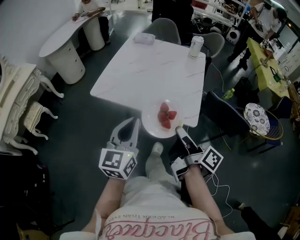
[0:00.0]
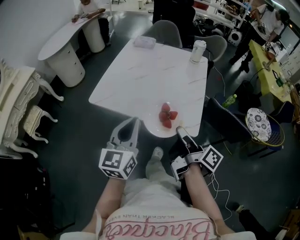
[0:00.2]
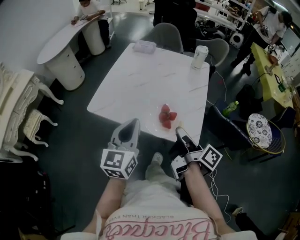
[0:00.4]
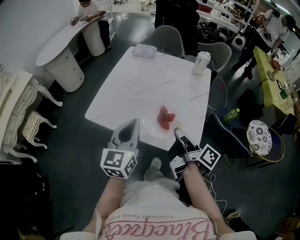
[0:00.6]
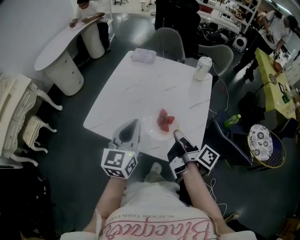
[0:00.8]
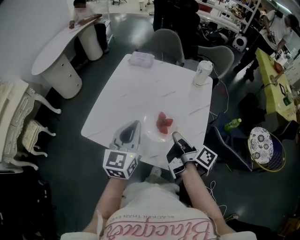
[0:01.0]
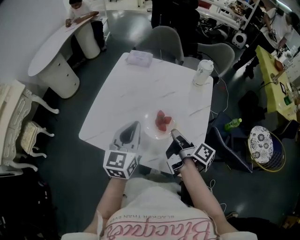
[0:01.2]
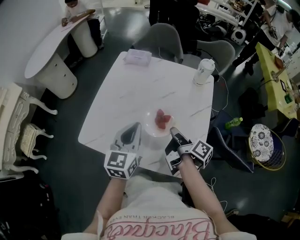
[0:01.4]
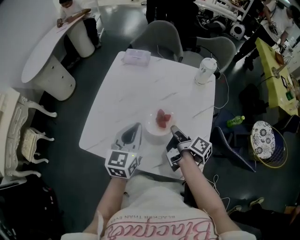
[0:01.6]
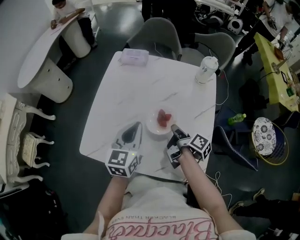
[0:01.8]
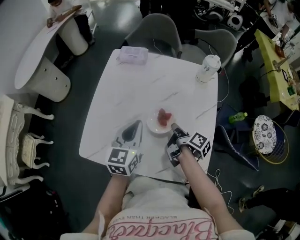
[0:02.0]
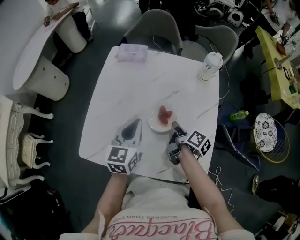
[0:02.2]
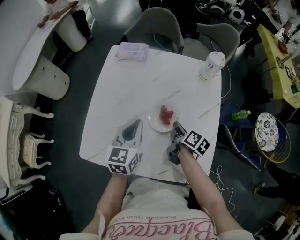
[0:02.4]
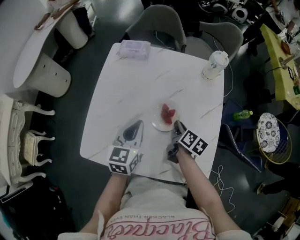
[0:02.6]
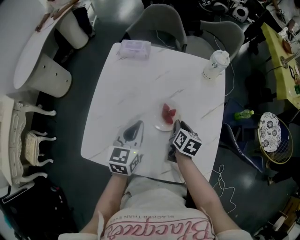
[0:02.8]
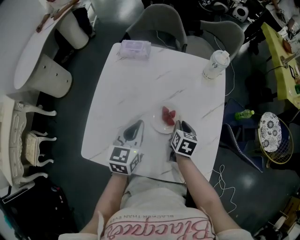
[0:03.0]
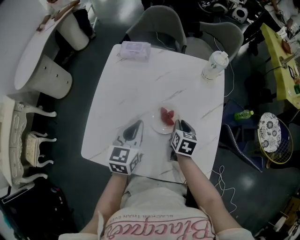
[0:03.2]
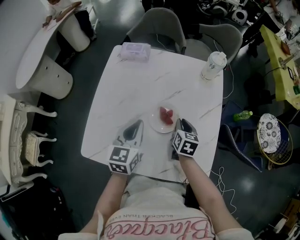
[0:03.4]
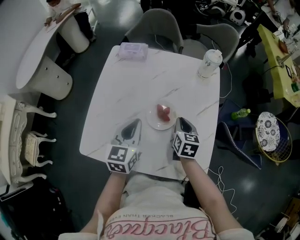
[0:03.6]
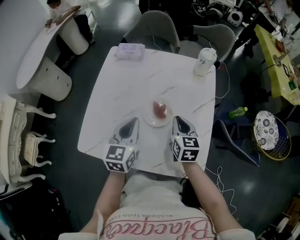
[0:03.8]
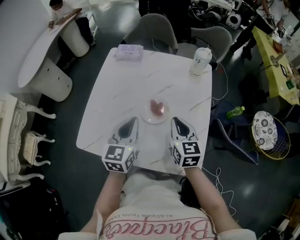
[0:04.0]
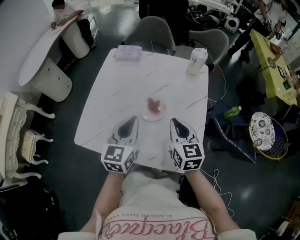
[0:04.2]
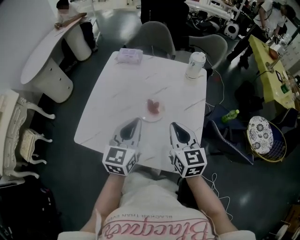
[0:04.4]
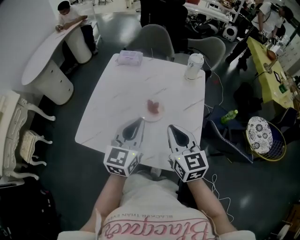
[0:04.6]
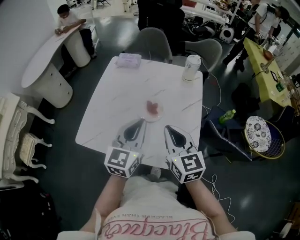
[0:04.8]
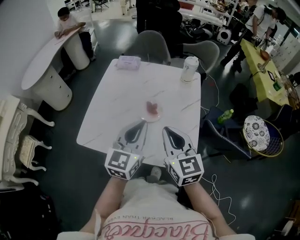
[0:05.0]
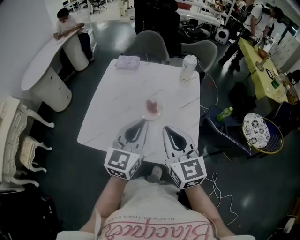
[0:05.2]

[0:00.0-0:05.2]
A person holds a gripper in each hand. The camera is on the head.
0:00.0 to 0:01.8: The pair of grippers is taken forward, approximately 40 cm. The right gripper swivels approximately 20 degrees.
0:01.8 to 0:03.4: The right gripper travels forward by roughly 5 cm, and rotates around the line of its fingers by about 60 degrees, counterclockwise from behind, while the left gripper shifts by approximately 5 cm.
0:03.4 to 0:05.2: The left gripper goes roughly 25 cm backward, upward and to the right, and swivels roughly 20 degrees. The right gripper travels upward and backward by about 35 cm, and angles its fingers upward, by approximately 30 degrees.

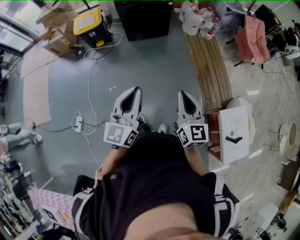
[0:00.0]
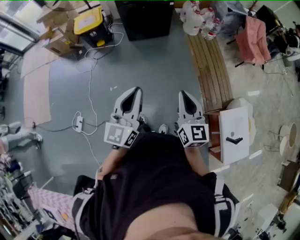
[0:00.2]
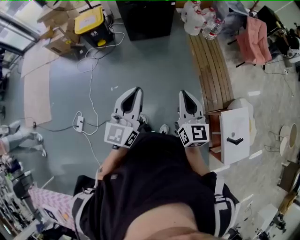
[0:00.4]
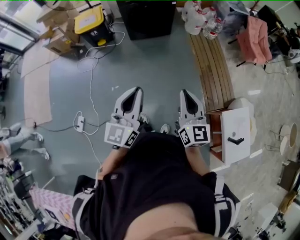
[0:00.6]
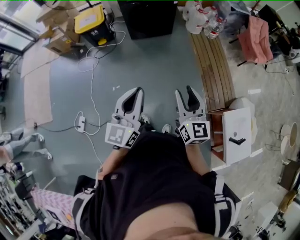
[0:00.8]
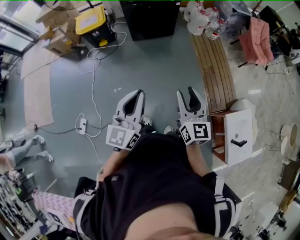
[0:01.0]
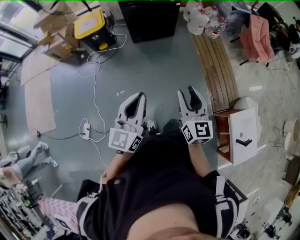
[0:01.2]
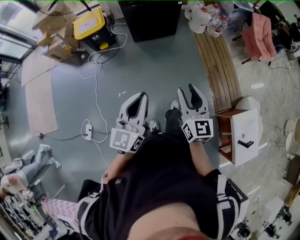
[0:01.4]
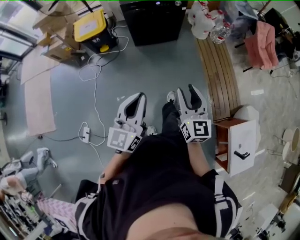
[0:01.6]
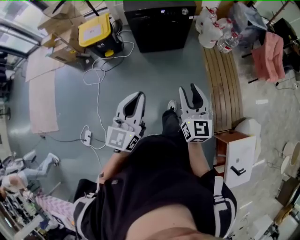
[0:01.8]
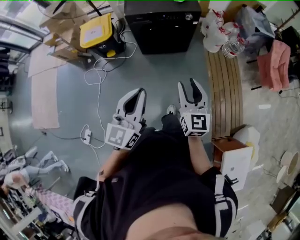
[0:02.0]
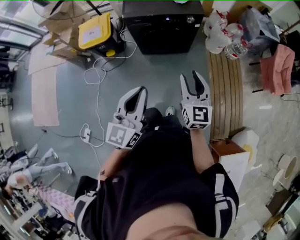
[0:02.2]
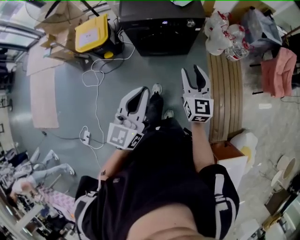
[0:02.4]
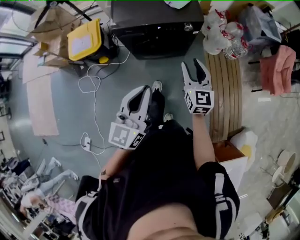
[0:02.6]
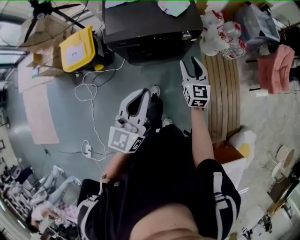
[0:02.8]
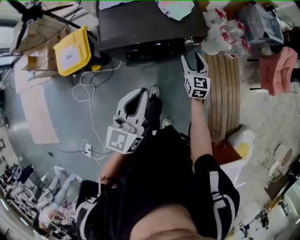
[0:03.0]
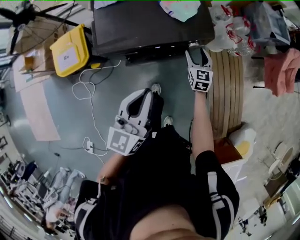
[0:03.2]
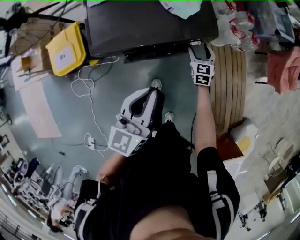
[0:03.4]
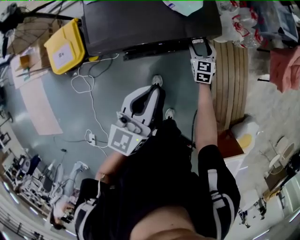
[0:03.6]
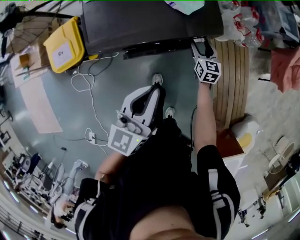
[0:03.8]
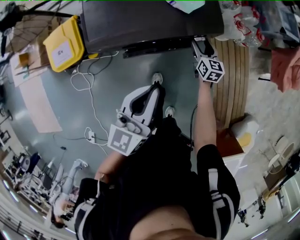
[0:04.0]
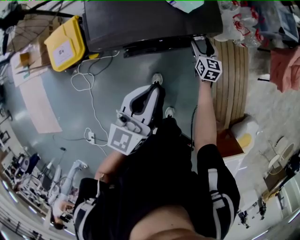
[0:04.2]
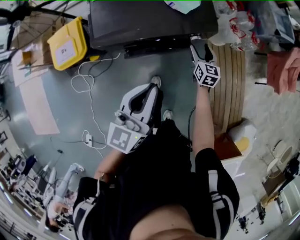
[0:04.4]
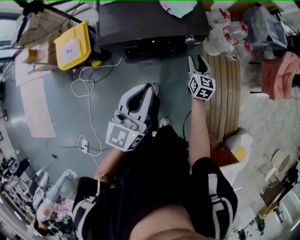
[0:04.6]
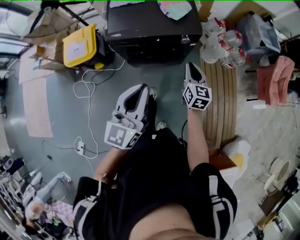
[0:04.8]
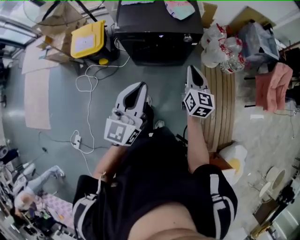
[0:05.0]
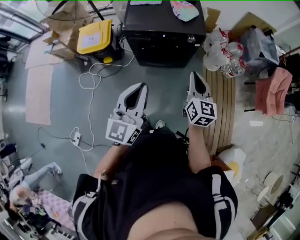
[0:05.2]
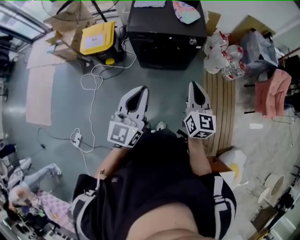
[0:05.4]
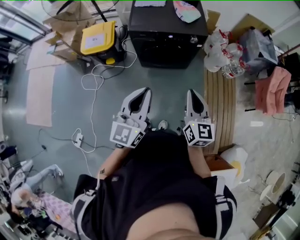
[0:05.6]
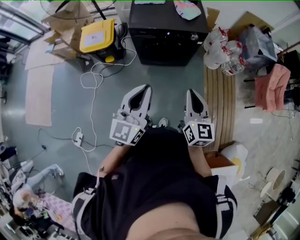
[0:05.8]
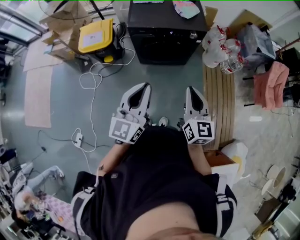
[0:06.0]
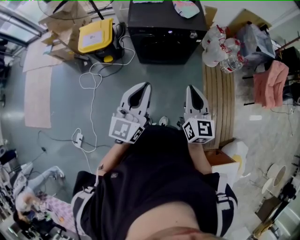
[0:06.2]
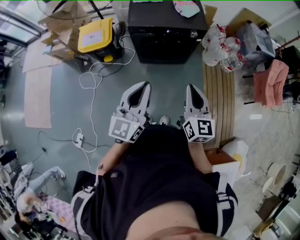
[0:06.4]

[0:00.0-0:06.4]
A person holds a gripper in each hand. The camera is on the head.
0:00.0 to 0:01.6: The two grippers go approximately 30 cm forward and to the left. The right gripper opens its fingers.
0:01.6 to 0:03.2: The two grippers travel together, forward, about 1 m. The right gripper turns by some 20 degrees.
0:03.2 to 0:04.8: The two grippers go approximately 30 cm backward and upward. The right gripper closes up.
0:04.8 to 0:06.4: The right gripper shifts some 40 cm backward and upward. Meanwhile the left gripper travels backward by roughly 25 cm.

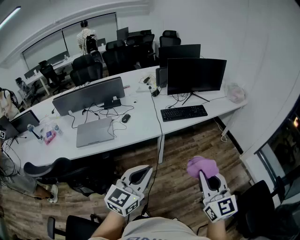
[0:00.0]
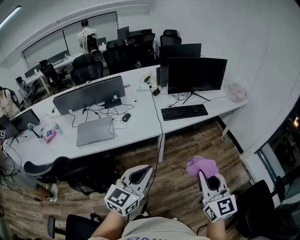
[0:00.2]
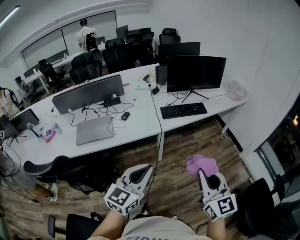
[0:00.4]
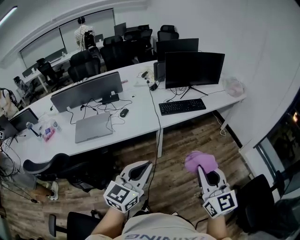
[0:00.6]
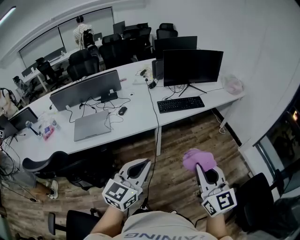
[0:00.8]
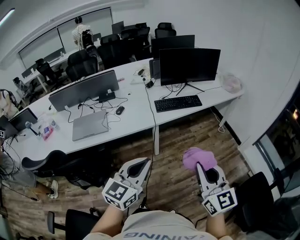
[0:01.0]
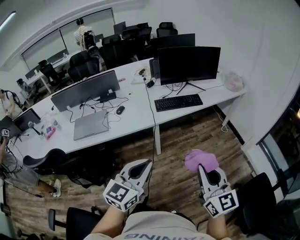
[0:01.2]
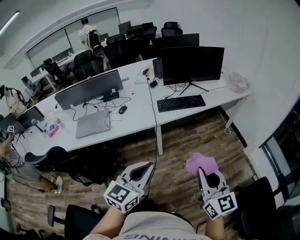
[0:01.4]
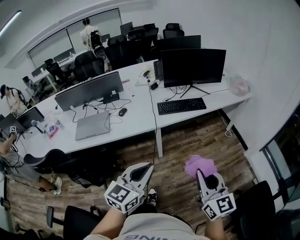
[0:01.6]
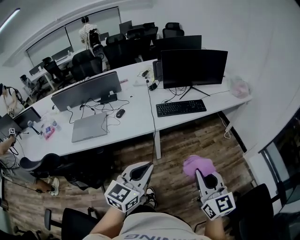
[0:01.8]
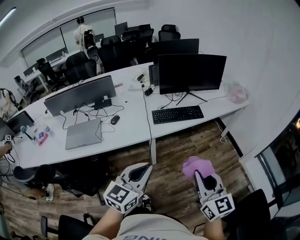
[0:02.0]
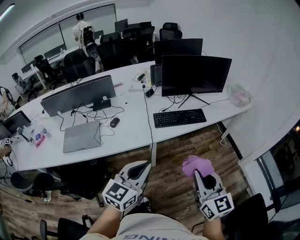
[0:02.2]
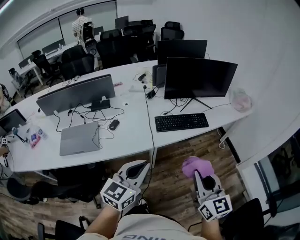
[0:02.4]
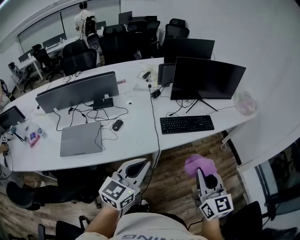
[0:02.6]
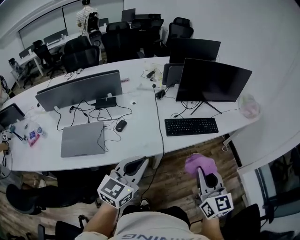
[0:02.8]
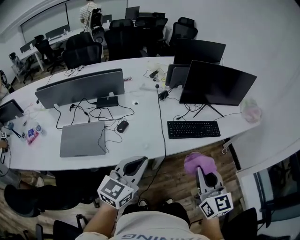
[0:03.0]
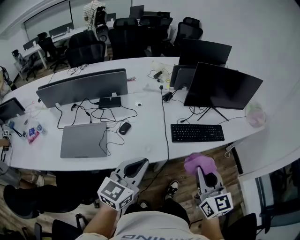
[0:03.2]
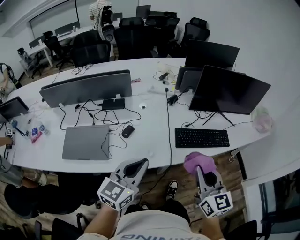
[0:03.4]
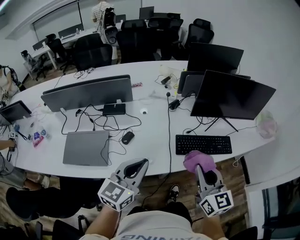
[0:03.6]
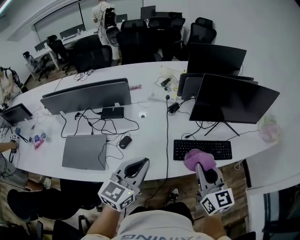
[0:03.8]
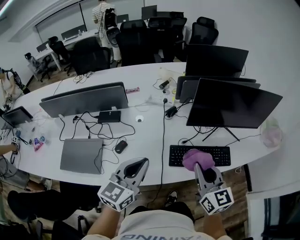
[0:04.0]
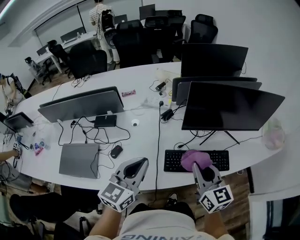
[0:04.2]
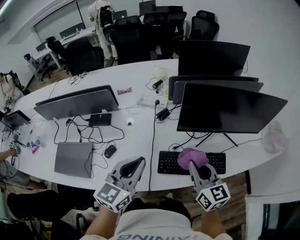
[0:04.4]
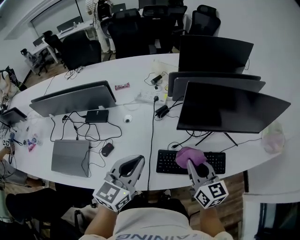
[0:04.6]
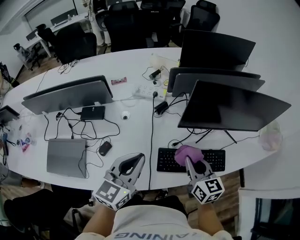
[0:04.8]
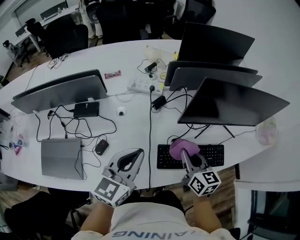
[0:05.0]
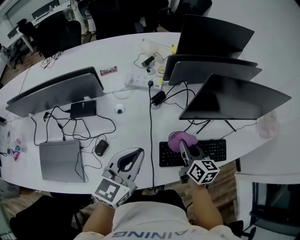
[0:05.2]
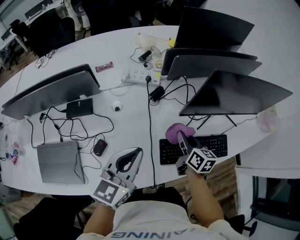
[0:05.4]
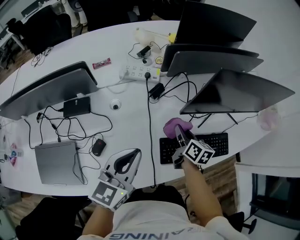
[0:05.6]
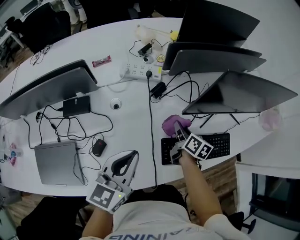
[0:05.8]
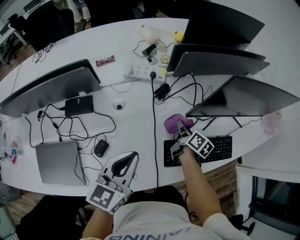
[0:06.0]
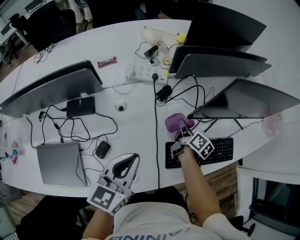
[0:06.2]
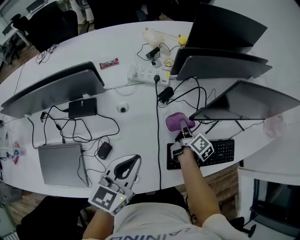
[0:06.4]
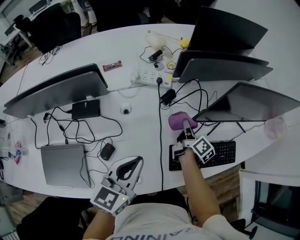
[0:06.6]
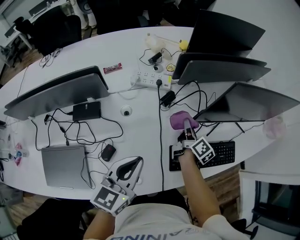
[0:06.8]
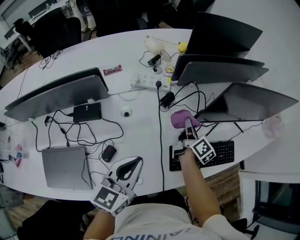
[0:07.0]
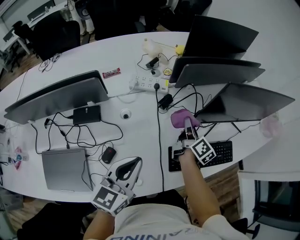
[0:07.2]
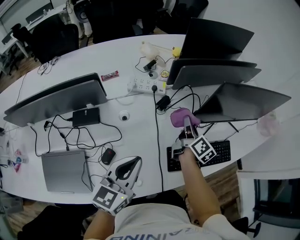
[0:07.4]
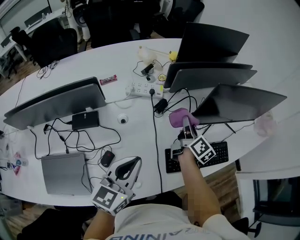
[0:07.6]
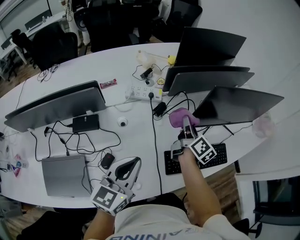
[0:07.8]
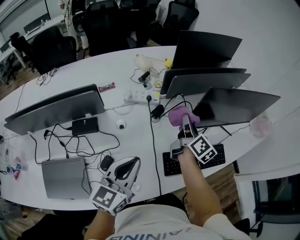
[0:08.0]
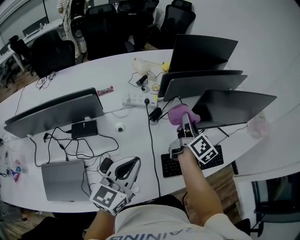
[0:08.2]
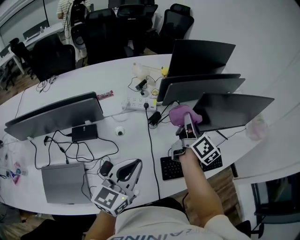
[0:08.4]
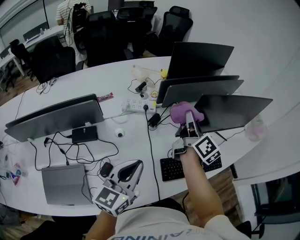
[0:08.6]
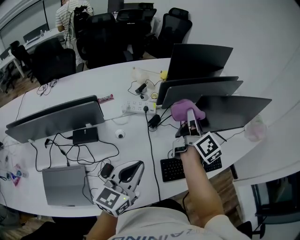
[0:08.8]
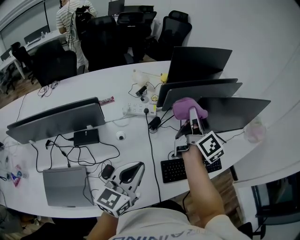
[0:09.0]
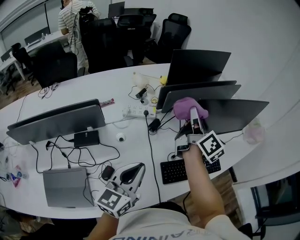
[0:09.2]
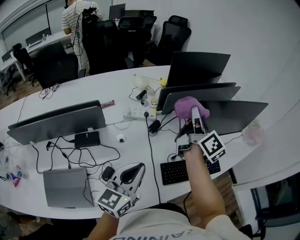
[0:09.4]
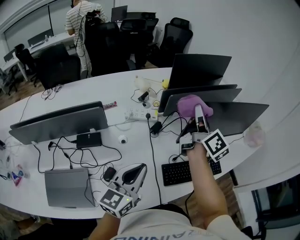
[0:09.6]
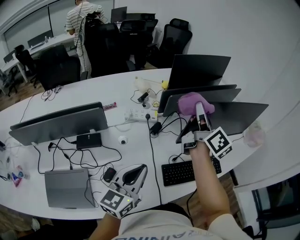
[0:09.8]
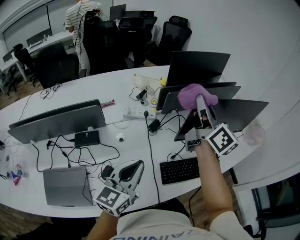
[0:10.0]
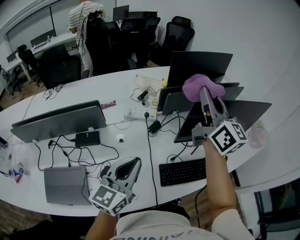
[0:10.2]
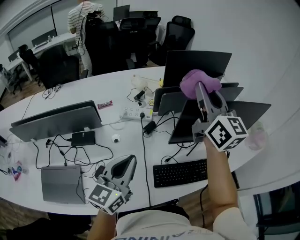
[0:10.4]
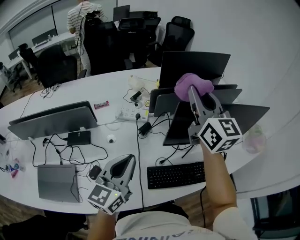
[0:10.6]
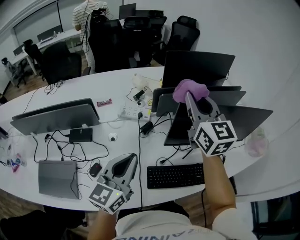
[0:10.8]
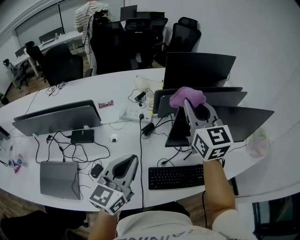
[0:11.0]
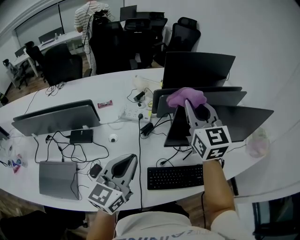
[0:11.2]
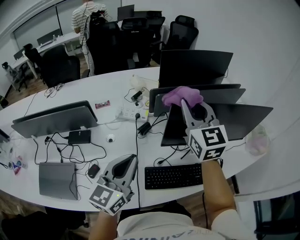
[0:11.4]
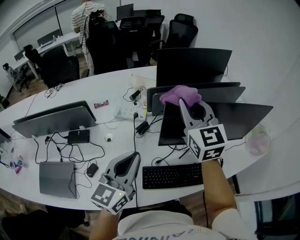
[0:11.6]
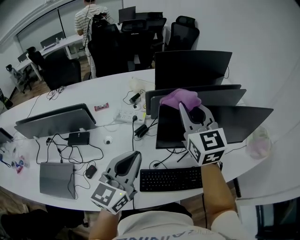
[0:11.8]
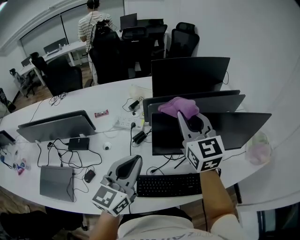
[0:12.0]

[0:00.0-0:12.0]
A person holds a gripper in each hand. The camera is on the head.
0:00.0 to 0:01.6: The grippers both shift to the right by approximately 10 cm.
0:01.6 to 0:03.0: The two grippers go about 30 cm forward and to the left.
0:03.0 to 0:04.4: Both grippers move forward, some 25 cm.
0:04.4 to 0:06.0: The right gripper goes approximately 30 cm downward and forward, and twists roughly 50 degrees clockwise, seen from behind, while the left gripper goes roughly 15 cm to the left, downward and forward.
0:06.0 to 0:07.6: The right gripper shifts approximately 15 cm upward, and rotates approximately 20 degrees.
0:07.6 to 0:09.0: The right gripper is displaced upward by approximately 20 cm.
0:09.0 to 0:10.4: The right gripper travels upward by about 15 cm, and turns by some 40 degrees, while the left gripper shifts by about 5 cm.
0:10.4 to 0:12.0: The left gripper goes about 15 cm to the right. The right gripper moves downward and to the right, roughly 10 cm, and swivels roughly 20 degrees.
